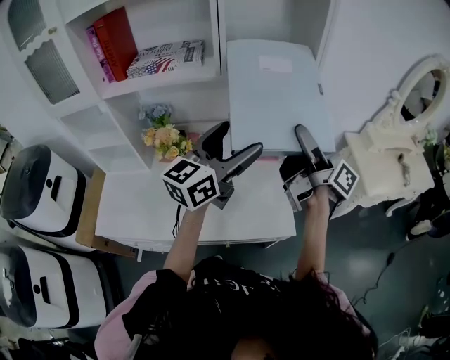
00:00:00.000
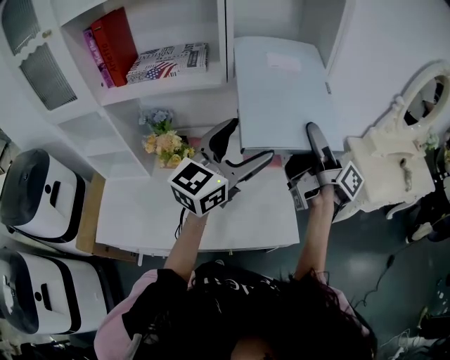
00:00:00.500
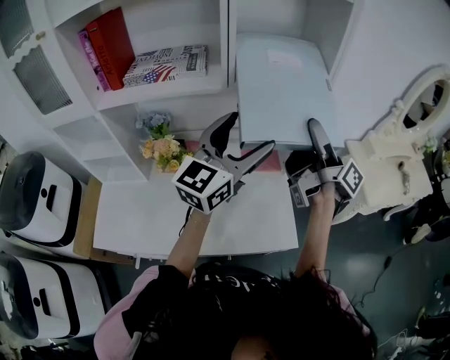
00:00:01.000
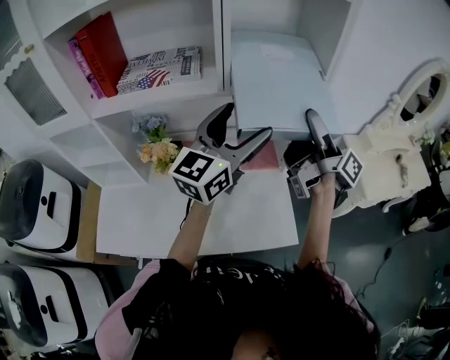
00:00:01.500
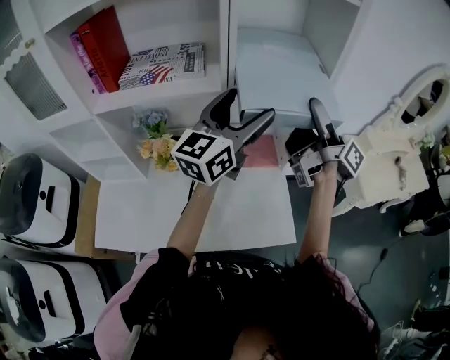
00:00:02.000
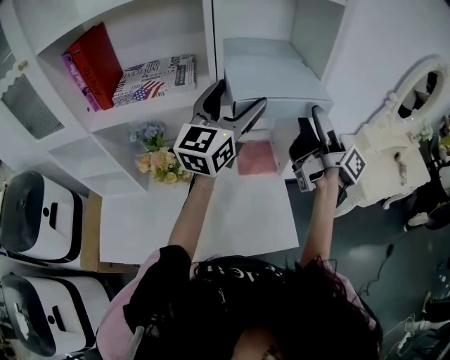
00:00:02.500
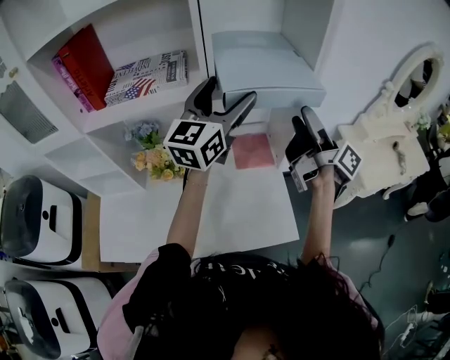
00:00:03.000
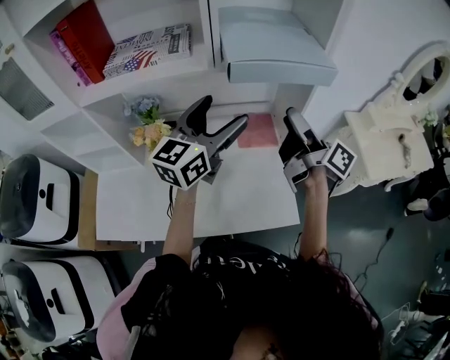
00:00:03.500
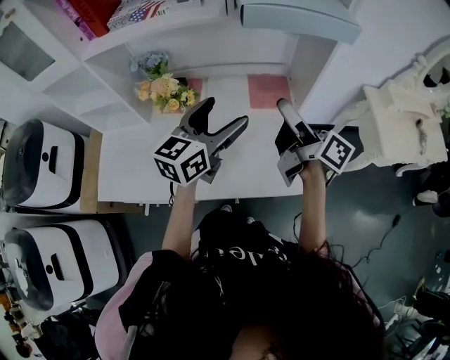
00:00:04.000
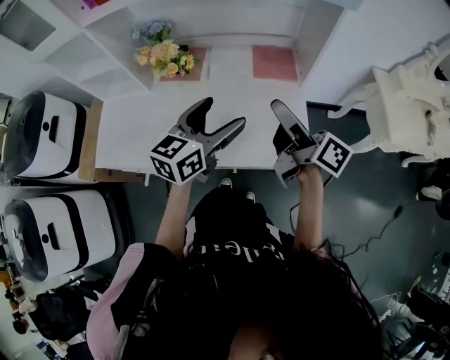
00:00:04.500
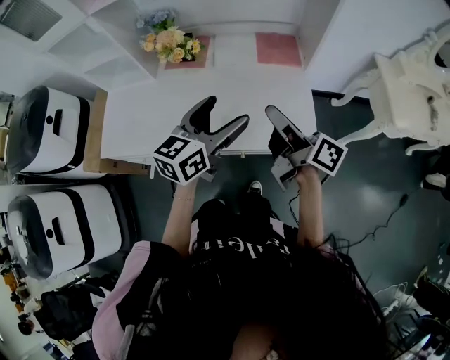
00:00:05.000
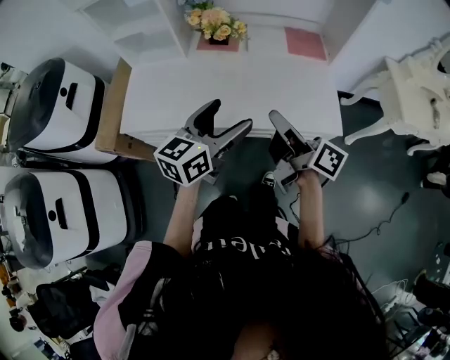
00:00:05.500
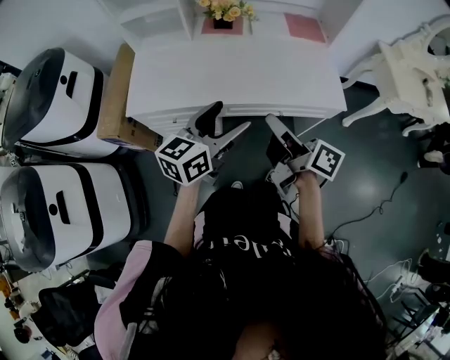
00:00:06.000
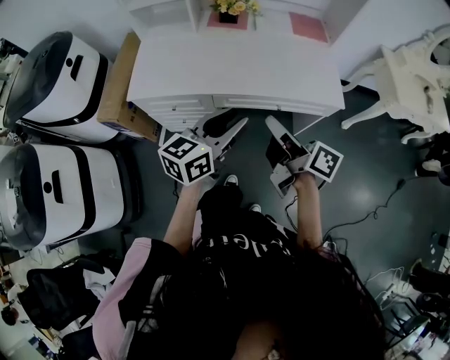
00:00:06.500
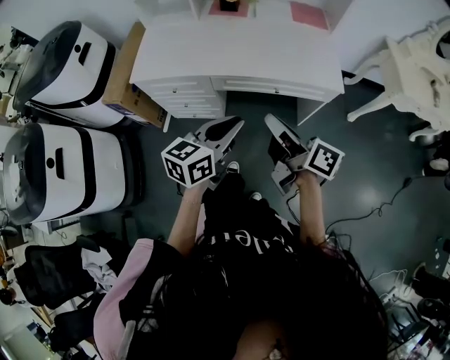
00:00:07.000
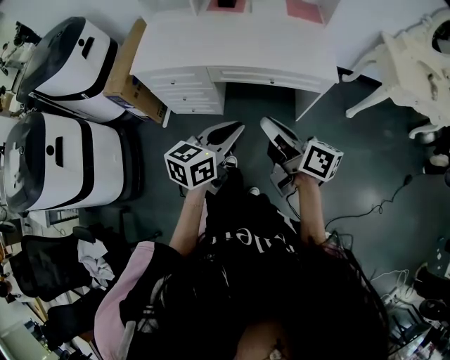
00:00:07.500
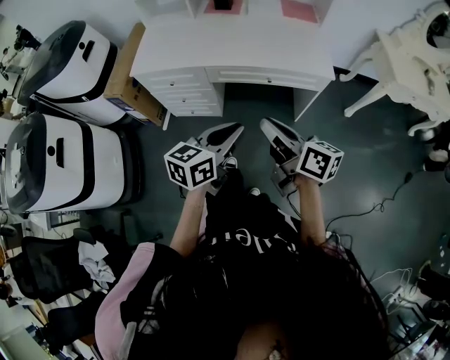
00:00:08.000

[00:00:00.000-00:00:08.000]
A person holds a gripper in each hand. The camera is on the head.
00:00:00.000 to 00:00:02.000: The grippers both shift forward and upward by some 15 cm.
00:00:02.000 to 00:00:04.000: Both grippers move downward and backward, about 20 cm. The left gripper rotates about 20 degrees. The right gripper changes its angle by some 20 degrees.
00:00:04.000 to 00:00:06.000: The pair of grippers is taken backward and to the left, about 40 cm. The right gripper closes.
00:00:06.000 to 00:00:08.000: The left gripper is displaced backward and to the right by some 25 cm, and closes its fingers. Meanwhile the right gripper is displaced backward by about 20 cm, and rotates approximately 20 degrees.

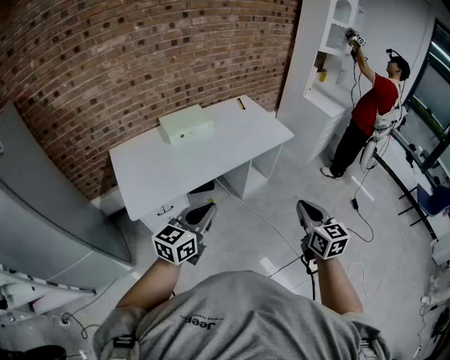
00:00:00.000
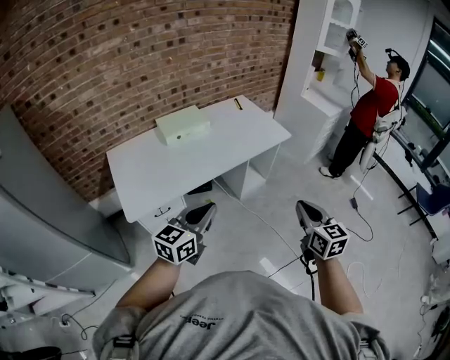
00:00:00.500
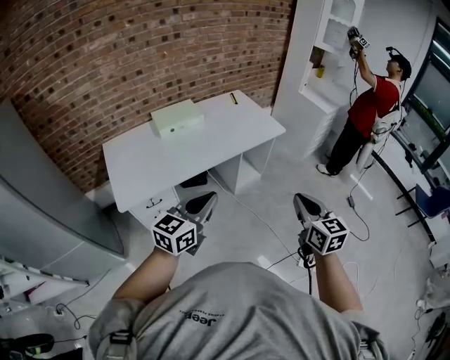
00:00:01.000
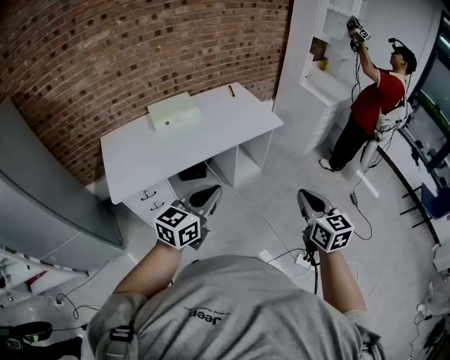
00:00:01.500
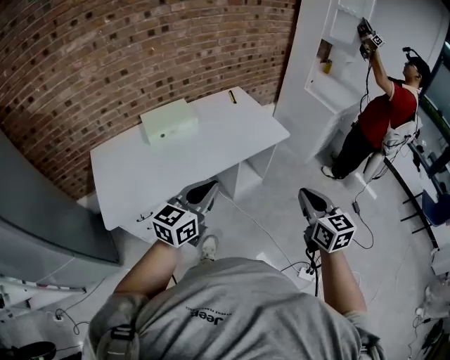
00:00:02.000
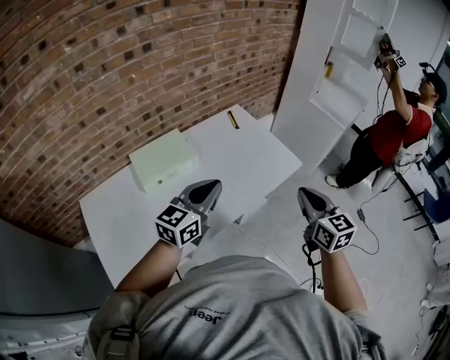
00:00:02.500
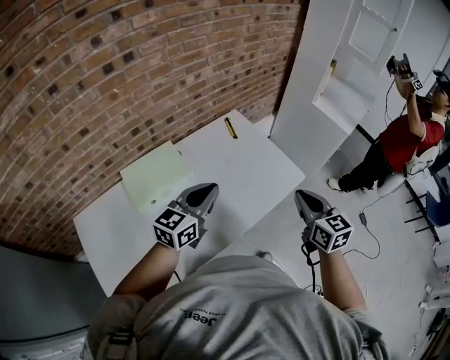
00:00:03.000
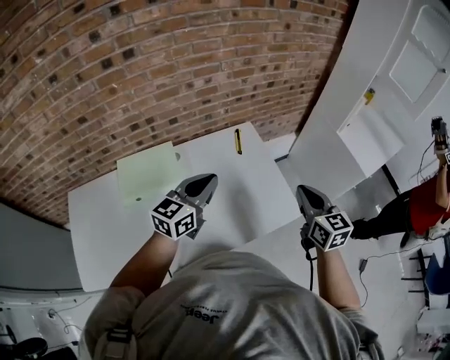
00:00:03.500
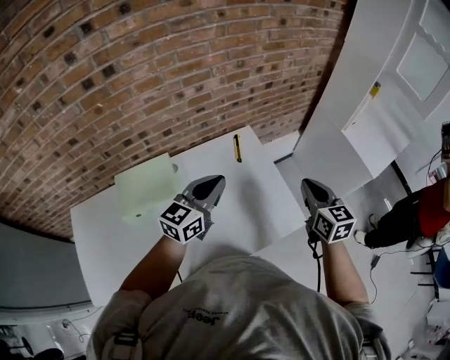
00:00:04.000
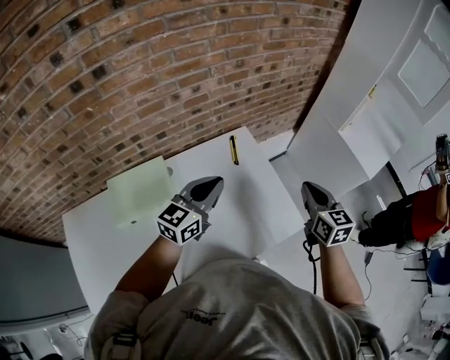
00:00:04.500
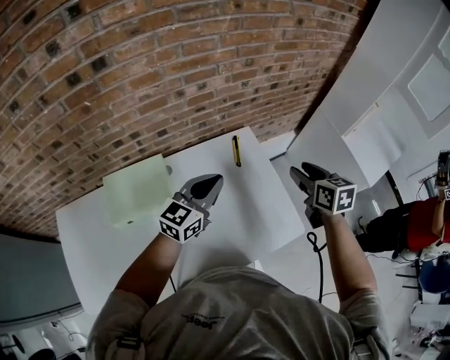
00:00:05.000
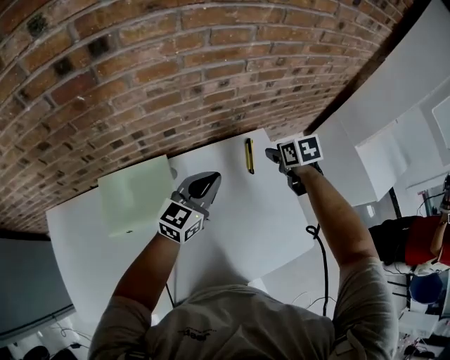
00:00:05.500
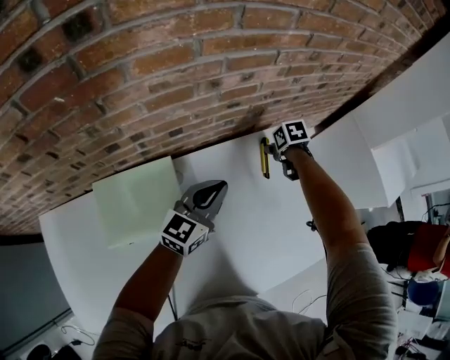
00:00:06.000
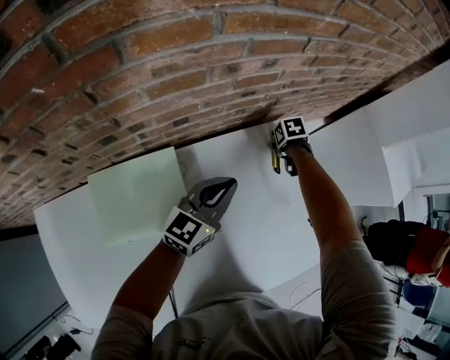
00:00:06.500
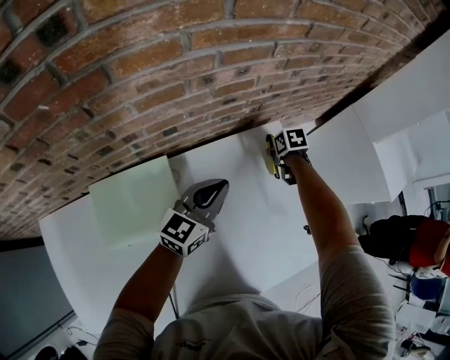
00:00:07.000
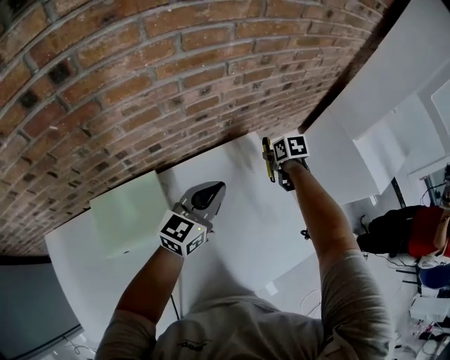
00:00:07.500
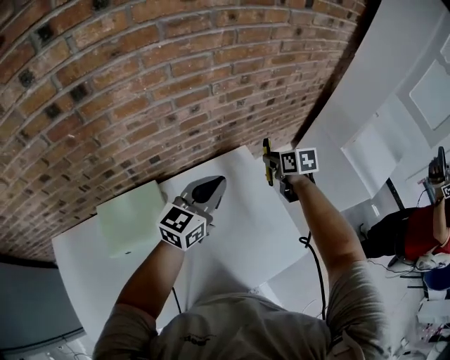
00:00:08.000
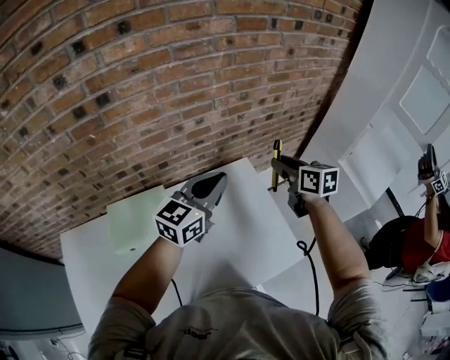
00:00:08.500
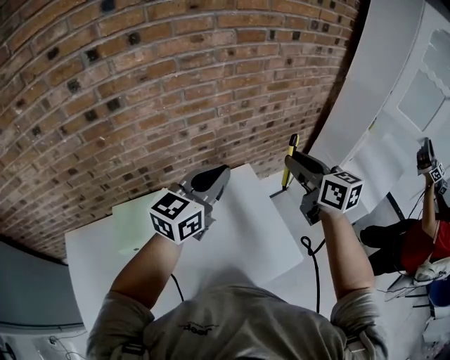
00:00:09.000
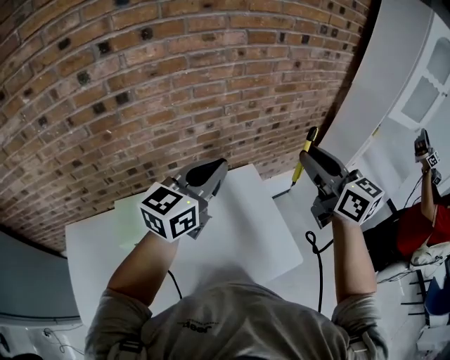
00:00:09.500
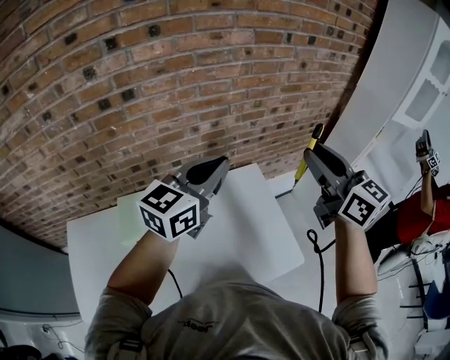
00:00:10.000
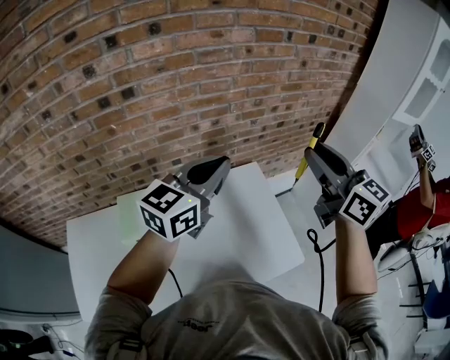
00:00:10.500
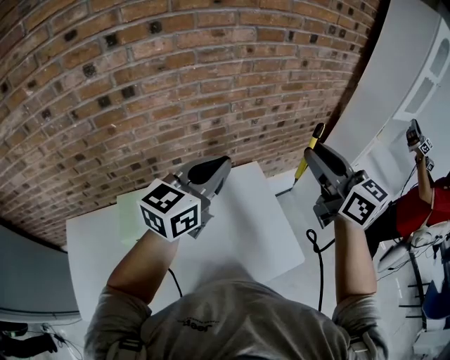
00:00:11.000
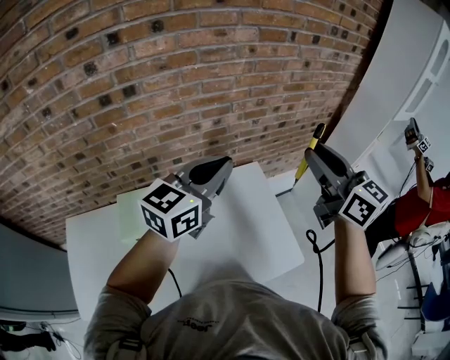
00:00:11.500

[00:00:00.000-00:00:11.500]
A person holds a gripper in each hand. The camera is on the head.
00:00:00.000 to 00:00:02.000: The two grippers go some 20 cm forward and to the right.
00:00:02.000 to 00:00:04.000: The two grippers travel together, forward, about 60 cm.
00:00:04.000 to 00:00:06.000: The right gripper is displaced forward, downward and to the left by approximately 50 cm, points its fingers roughly 50 degrees further downward, and opens up. Meanwhile the left gripper moves downward, forward and to the left, approximately 25 cm.
00:00:06.000 to 00:00:07.500: The right gripper moves some 10 cm; the left gripper changes place by roughly 10 cm.
00:00:07.500 to 00:00:09.500: The left gripper travels upward by some 25 cm. Meanwhile the right gripper shifts roughly 50 cm upward and backward, and points its fingers about 60 degrees further upward.
00:00:09.500 to 00:00:11.500: The grippers stay close to where they were, moving slightly.

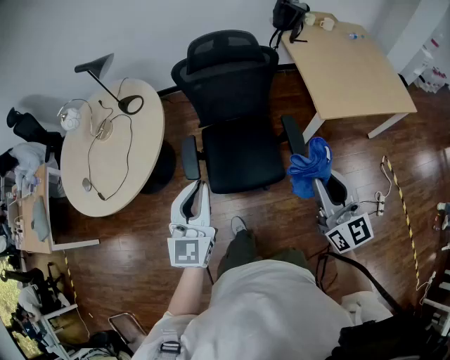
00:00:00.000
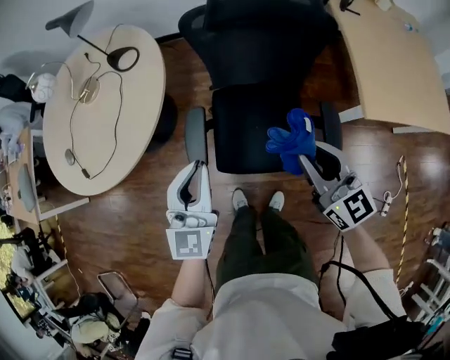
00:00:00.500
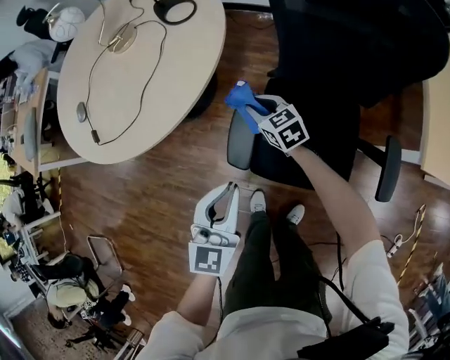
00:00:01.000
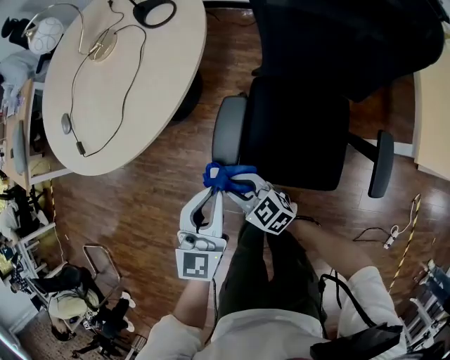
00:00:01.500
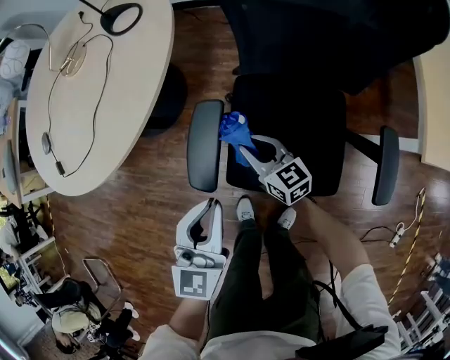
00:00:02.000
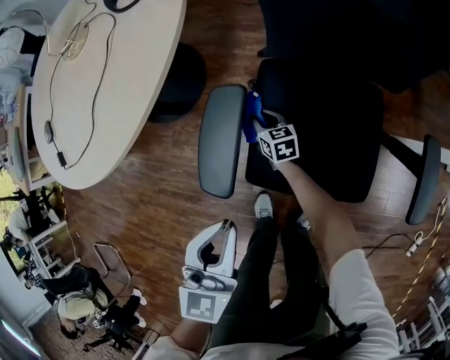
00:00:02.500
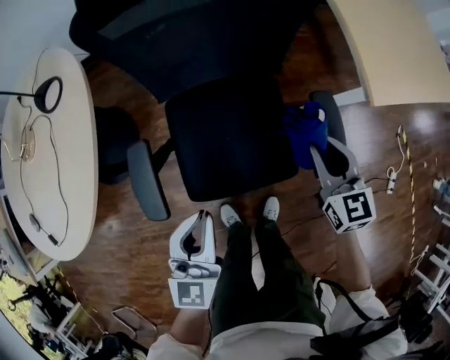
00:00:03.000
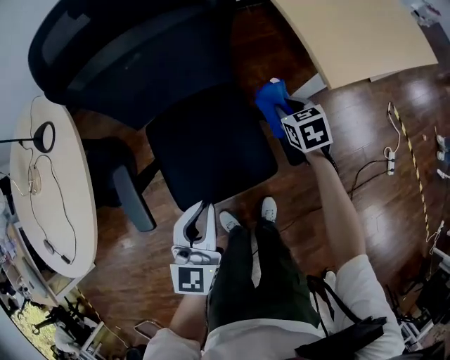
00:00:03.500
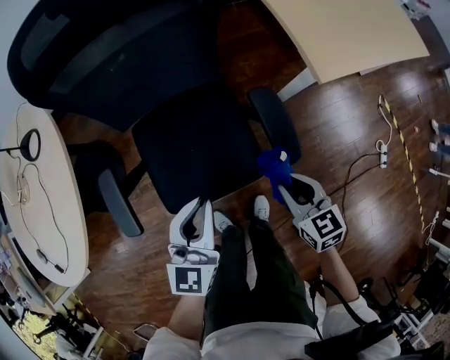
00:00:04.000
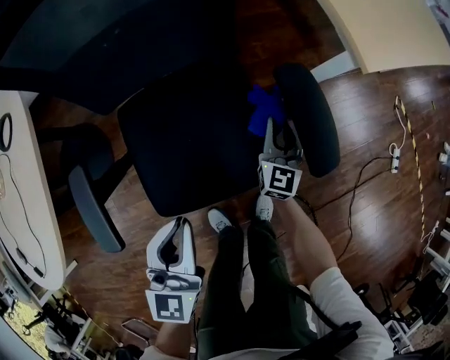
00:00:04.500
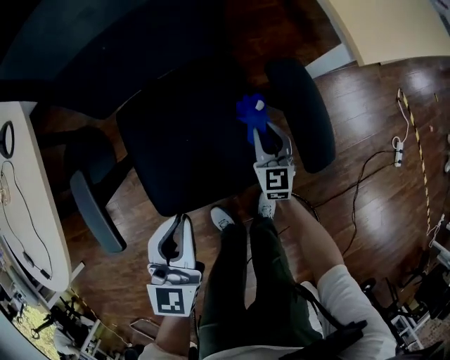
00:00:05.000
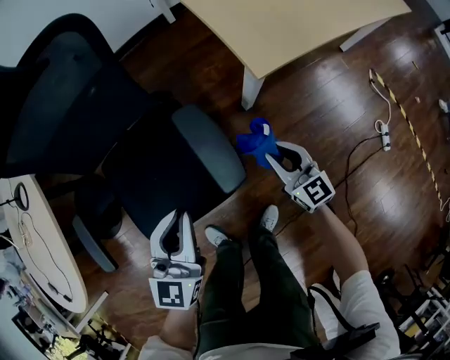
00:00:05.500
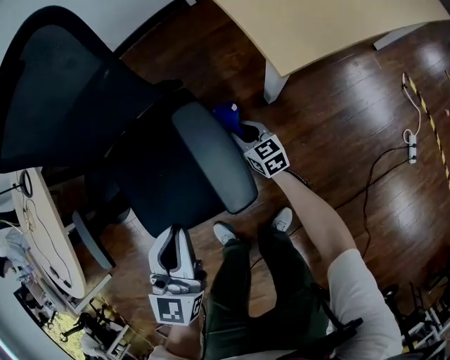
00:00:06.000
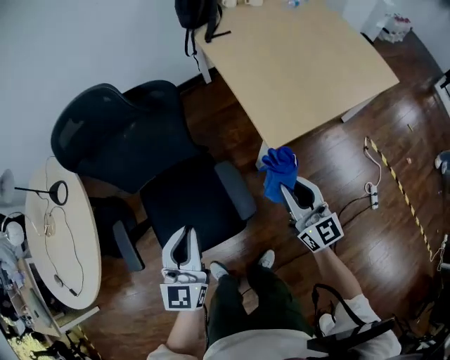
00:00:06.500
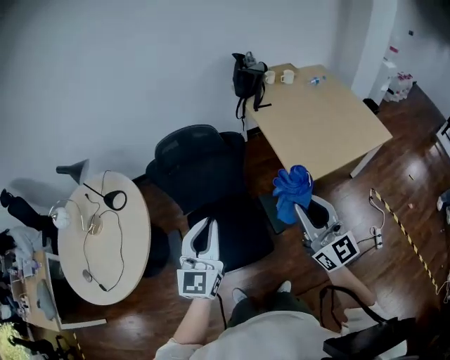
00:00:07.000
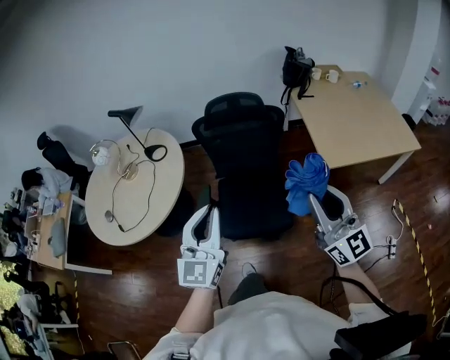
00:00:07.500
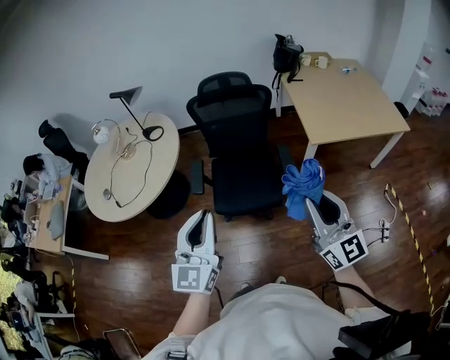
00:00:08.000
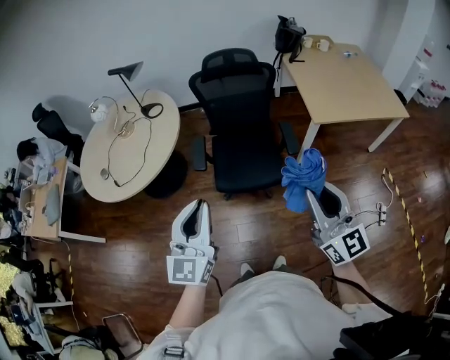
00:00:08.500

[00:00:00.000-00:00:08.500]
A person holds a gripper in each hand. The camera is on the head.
00:00:00.000 to 00:00:02.000: The left gripper shifts roughly 30 cm downward. Meanwhile the right gripper goes about 50 cm downward, and swivels some 50 degrees.
00:00:02.000 to 00:00:04.000: The left gripper changes place by roughly 25 cm, and swivels about 30 degrees, while the right gripper moves up and down over about 35 cm, changing direction 3 times, and changes its angle by approximately 40 degrees.
00:00:04.000 to 00:00:06.500: The right gripper swings up and down, some 50 cm each way, with 3 reversals, and tips its fingers upward by roughly 40 degrees; the left gripper swings up and down, approximately 20 cm each way, with 3 reversals.
00:00:06.500 to 00:00:08.500: The two grippers travel together, backward and to the left, about 40 cm. Both grippers travel together upward, about 30 cm.
